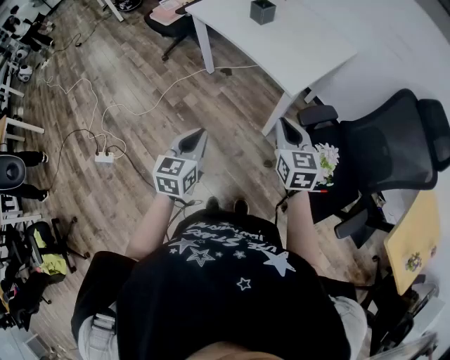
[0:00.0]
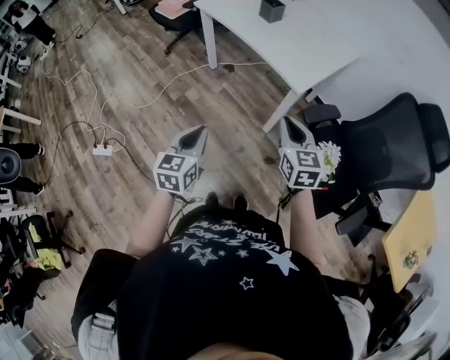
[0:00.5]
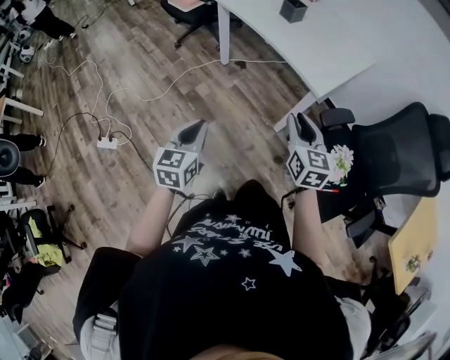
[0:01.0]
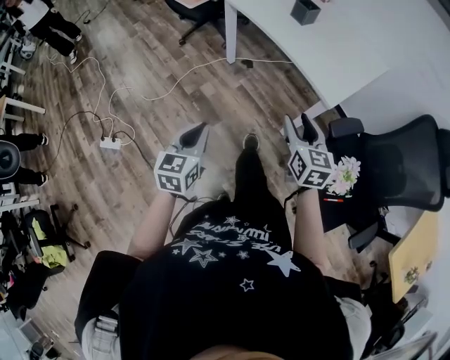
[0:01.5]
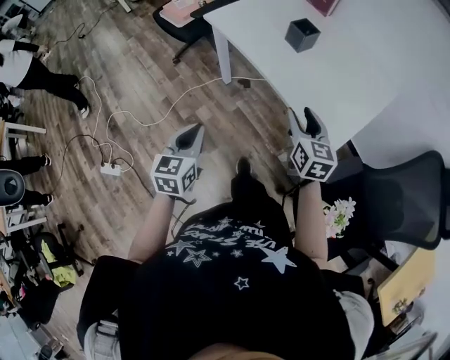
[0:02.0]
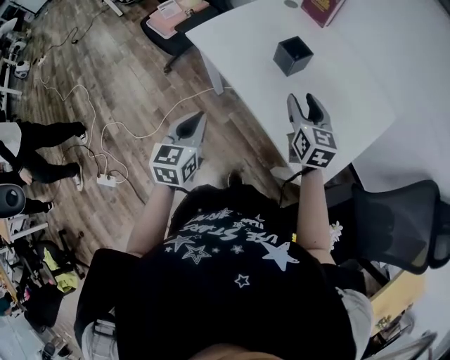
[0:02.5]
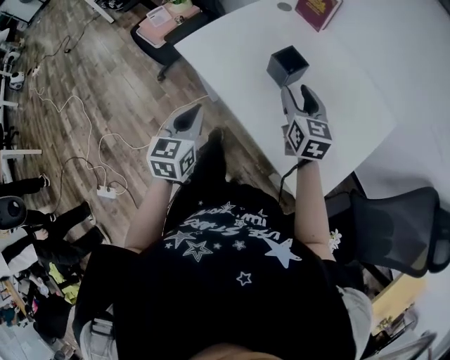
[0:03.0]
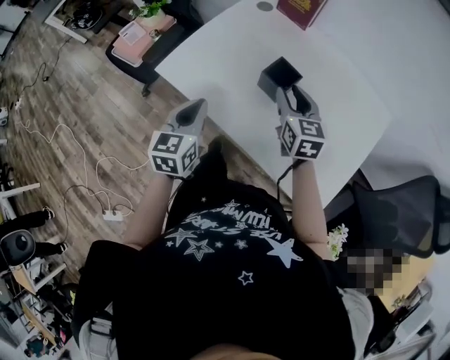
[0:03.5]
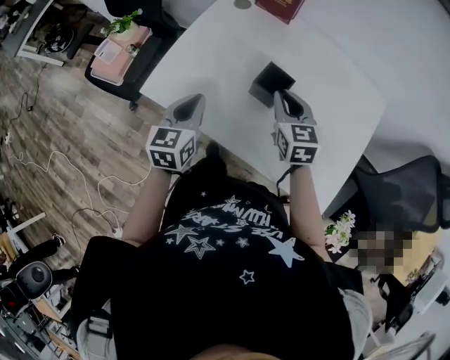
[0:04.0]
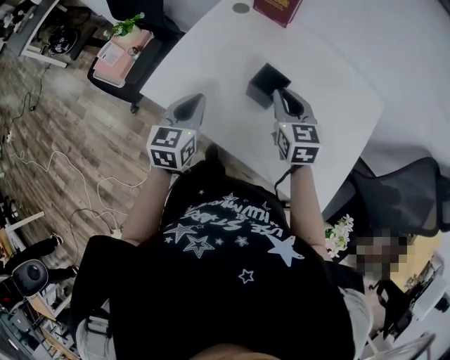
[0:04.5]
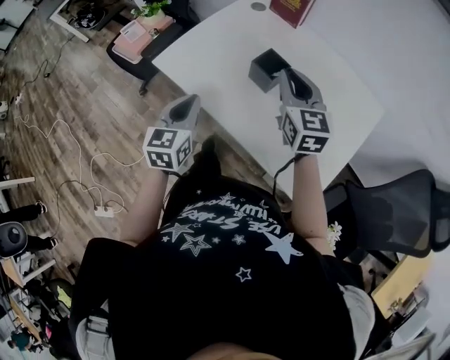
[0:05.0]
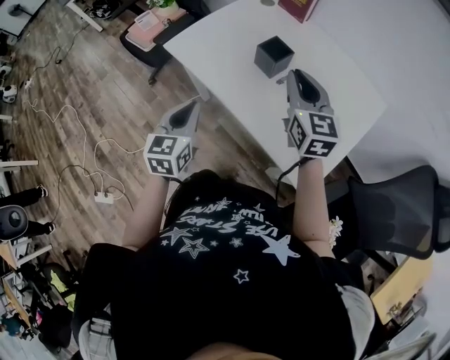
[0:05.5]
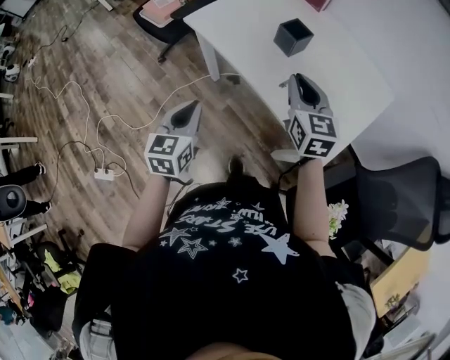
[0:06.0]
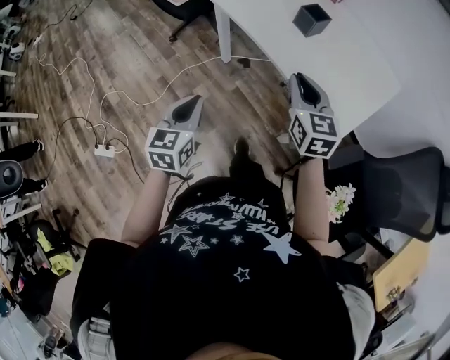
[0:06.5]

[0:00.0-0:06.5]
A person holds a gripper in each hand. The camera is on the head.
0:00.0 to 0:02.0: The left gripper goes about 30 cm forward and to the left. Meanwhile the right gripper heads forward, covering approximately 30 cm, and opens.
0:02.0 to 0:04.5: Both grippers travel together forward, approximately 40 cm. The left gripper turns by approximately 20 degrees, while the right gripper closes.
0:04.5 to 0:06.5: The grippers both shift backward by approximately 35 cm. The left gripper changes its angle by roughly 20 degrees.

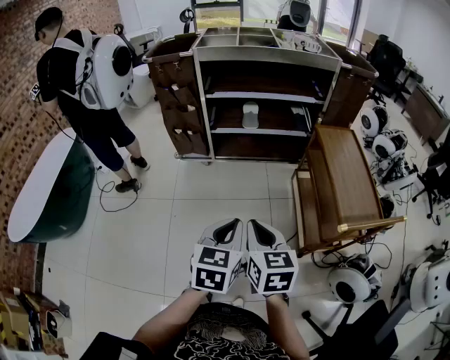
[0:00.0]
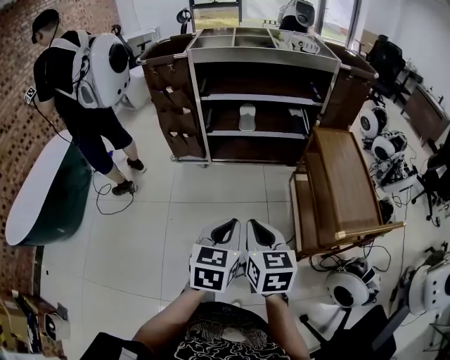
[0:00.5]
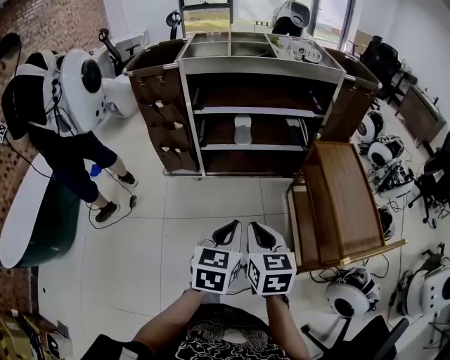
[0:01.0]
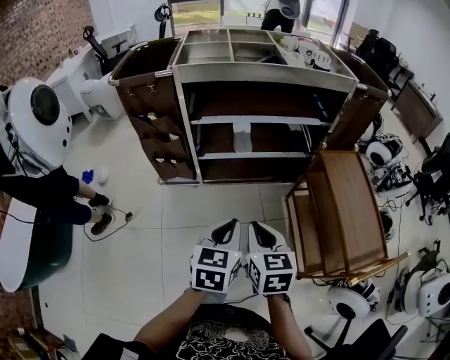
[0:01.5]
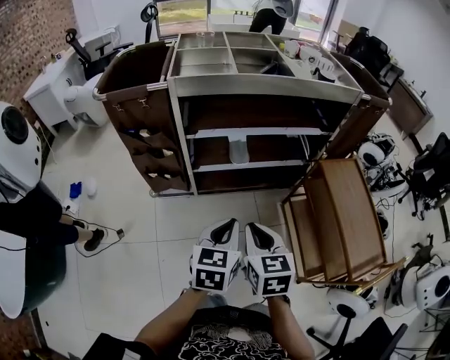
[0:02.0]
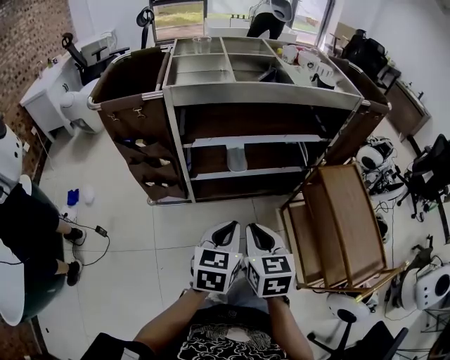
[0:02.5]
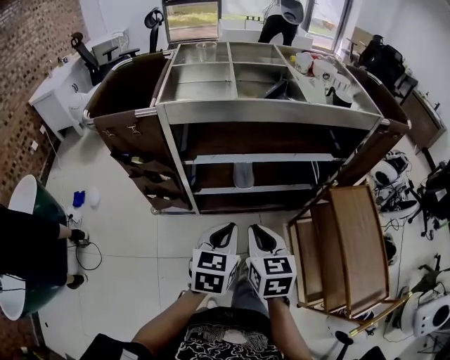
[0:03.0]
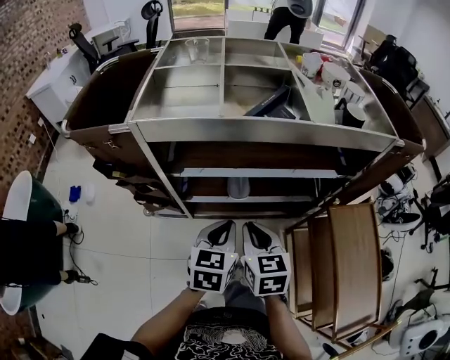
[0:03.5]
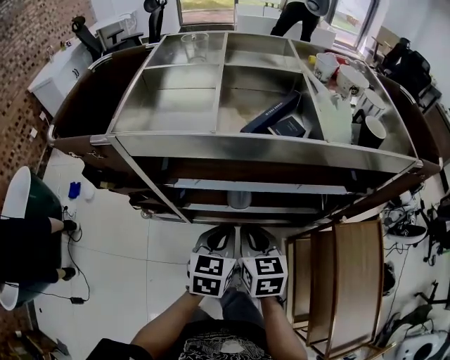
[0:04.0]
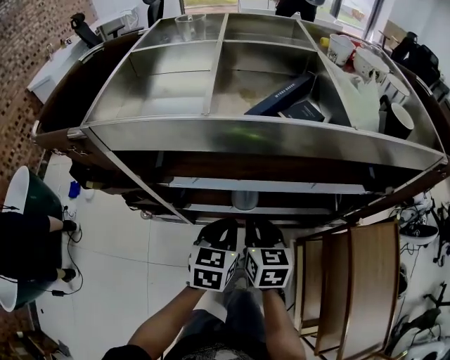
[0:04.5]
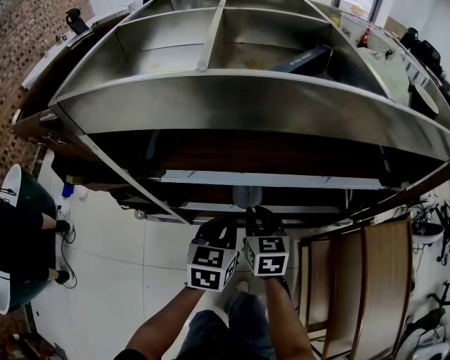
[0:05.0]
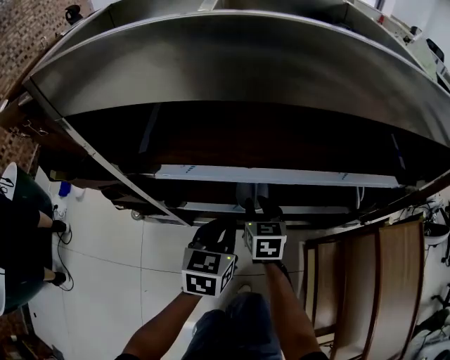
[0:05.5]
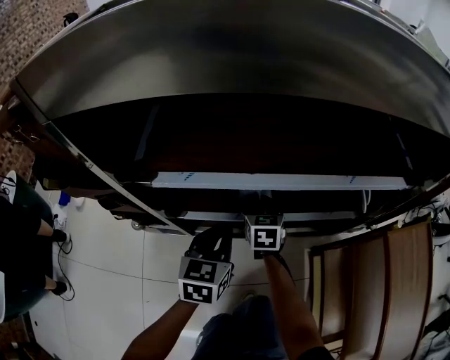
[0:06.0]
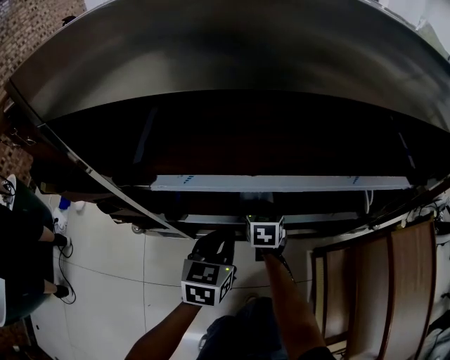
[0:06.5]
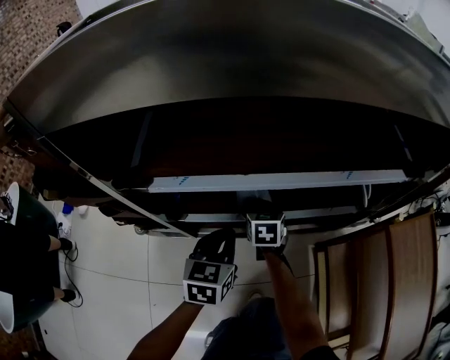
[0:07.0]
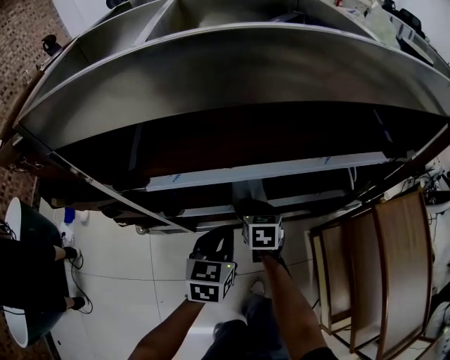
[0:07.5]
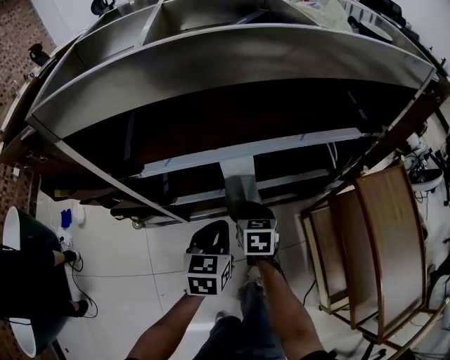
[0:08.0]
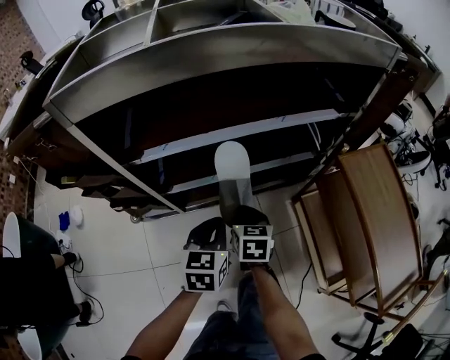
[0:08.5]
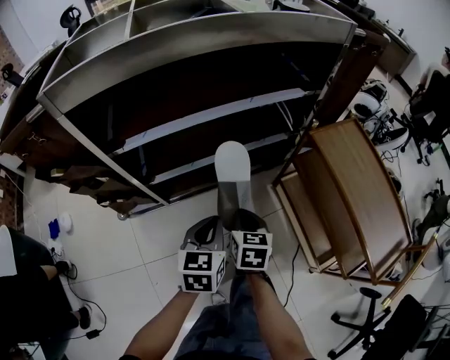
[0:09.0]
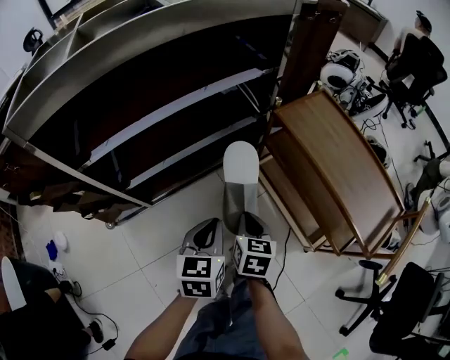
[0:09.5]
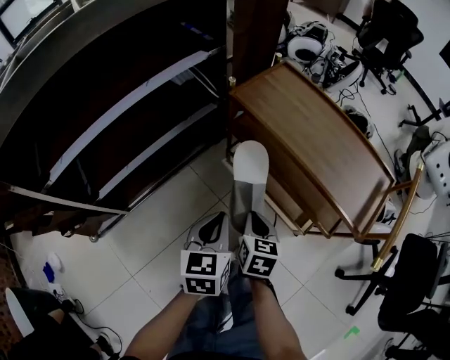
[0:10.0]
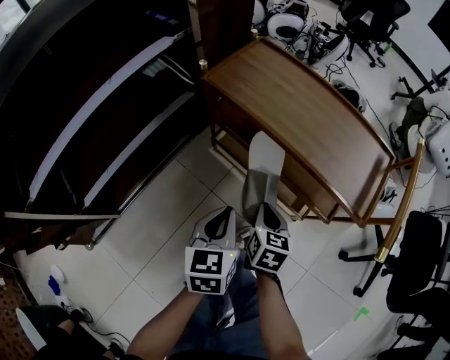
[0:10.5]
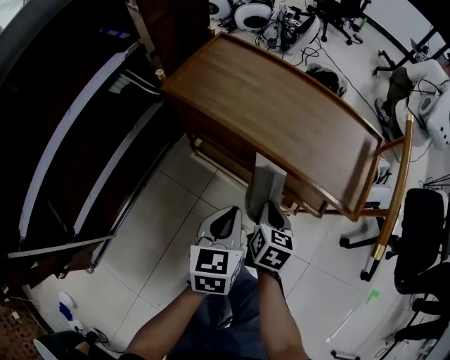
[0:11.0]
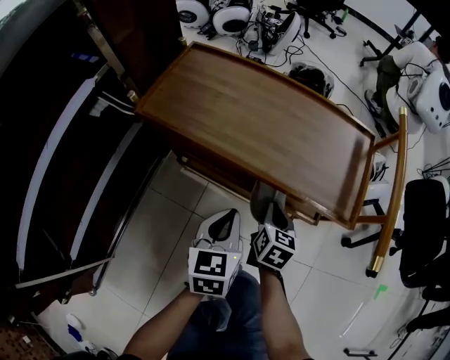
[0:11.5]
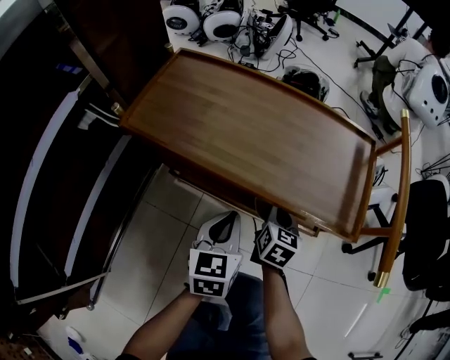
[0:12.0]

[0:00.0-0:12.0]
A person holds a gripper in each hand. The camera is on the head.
0:00.0 to 0:02.0: The two grippers go roughly 35 cm forward.
0:02.0 to 0:04.0: The two grippers go approximately 30 cm forward.
0:04.0 to 0:06.0: The left gripper travels downward by some 20 cm, while the right gripper travels downward and forward by approximately 35 cm, and opens its fingers.
0:06.0 to 0:08.0: The left gripper is displaced backward by approximately 10 cm. The right gripper moves backward and upward, about 15 cm, and closes up.
0:08.0 to 0:10.0: The left gripper ends up approximately 30 cm from where it was, and rotates about 30 degrees; the right gripper ends up some 40 cm from where it was, and rotates roughly 40 degrees.
0:10.0 to 0:12.0: The right gripper changes place by some 30 cm, and rotates approximately 40 degrees. Meanwhile the left gripper ends up roughly 25 cm from where it was, and rotates about 30 degrees.

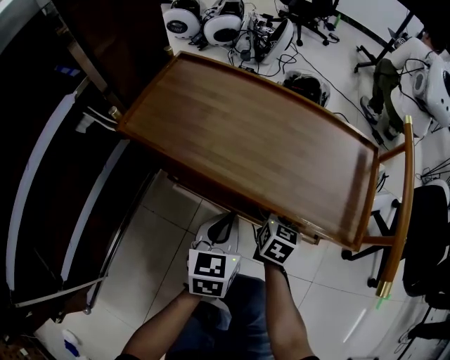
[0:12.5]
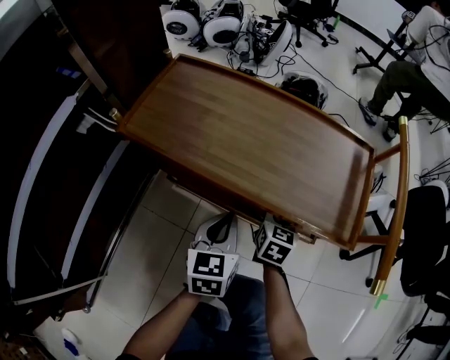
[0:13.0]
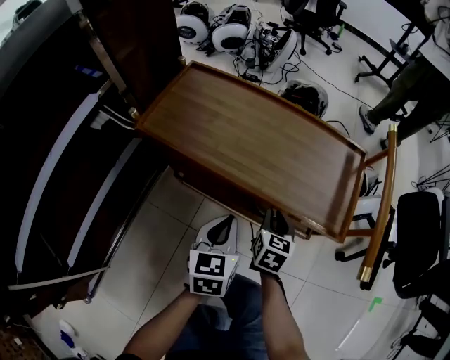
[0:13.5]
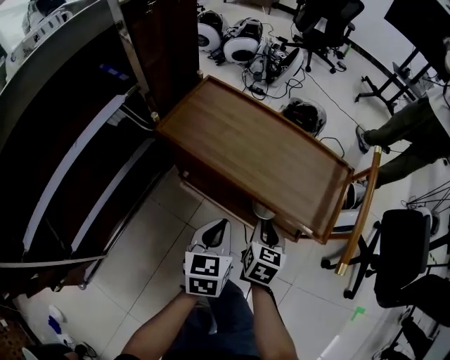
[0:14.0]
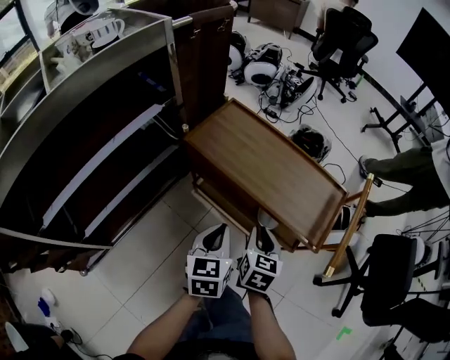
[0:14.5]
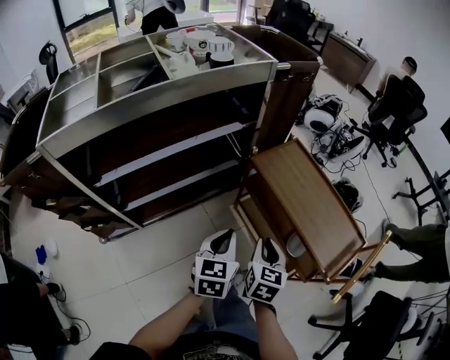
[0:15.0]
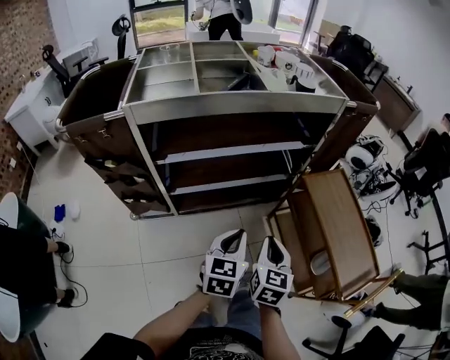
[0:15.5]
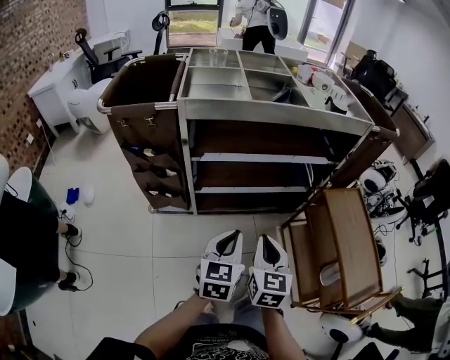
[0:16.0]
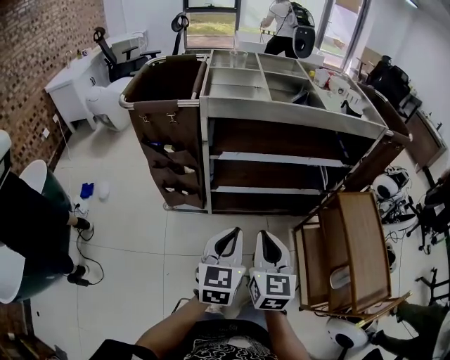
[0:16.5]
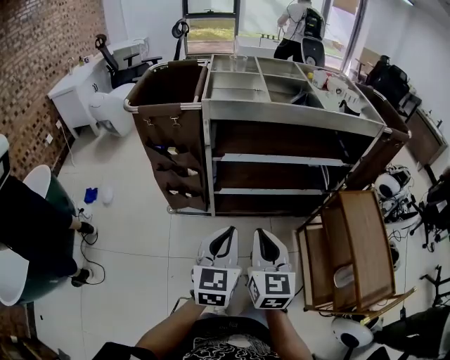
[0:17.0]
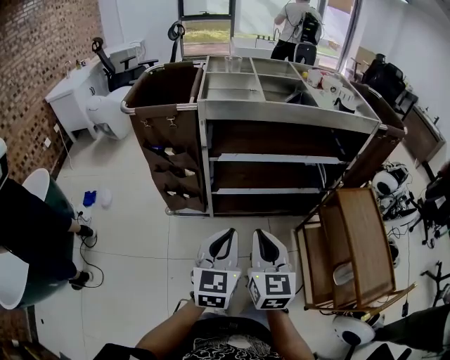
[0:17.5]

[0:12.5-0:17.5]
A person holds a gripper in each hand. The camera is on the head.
0:12.5 to 0:15.0: Both grippers move upward, some 30 cm. The right gripper swivels some 40 degrees. Meanwhile the left gripper turns by some 30 degrees.
0:15.0 to 0:17.5: The right gripper shifts by approximately 40 cm, and turns by about 50 degrees; the left gripper changes place by approximately 35 cm, and changes its angle by about 30 degrees.

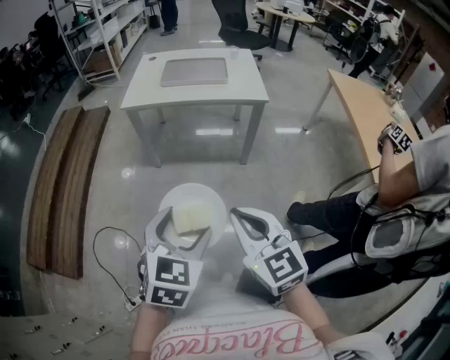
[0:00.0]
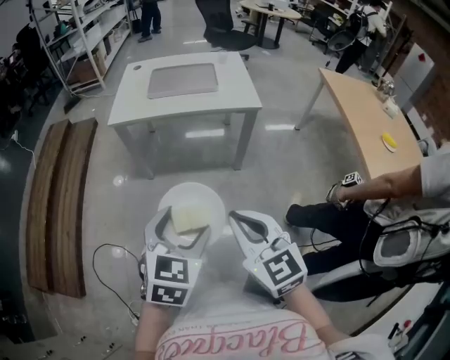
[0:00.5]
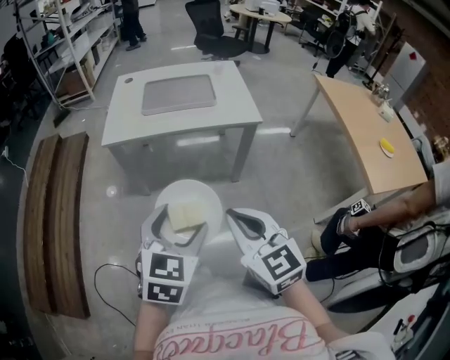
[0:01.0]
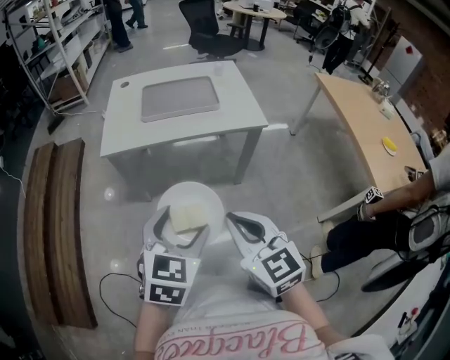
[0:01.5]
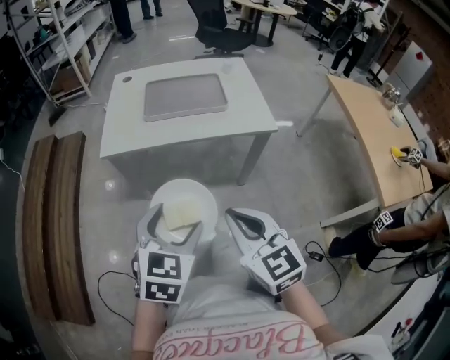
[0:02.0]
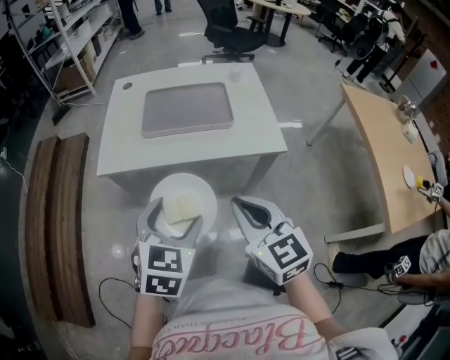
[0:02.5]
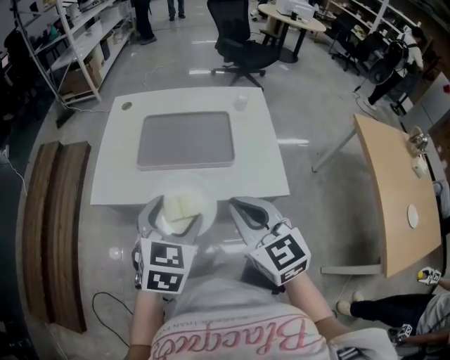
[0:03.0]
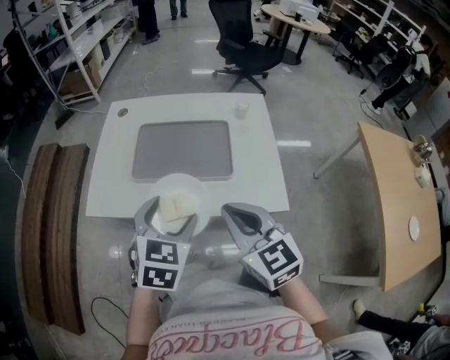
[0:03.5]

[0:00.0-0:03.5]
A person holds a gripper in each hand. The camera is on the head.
0:00.0 to 0:02.0: The grippers both shift forward by roughly 20 cm.
0:02.0 to 0:03.5: The two grippers go some 25 cm forward.
